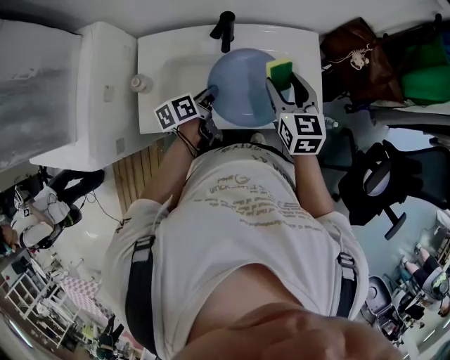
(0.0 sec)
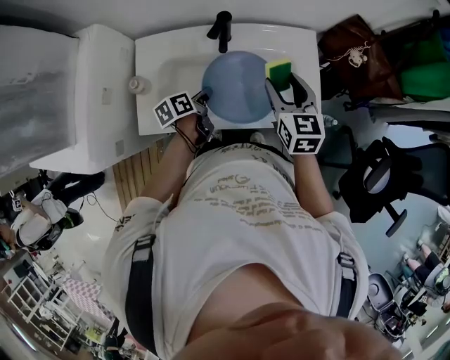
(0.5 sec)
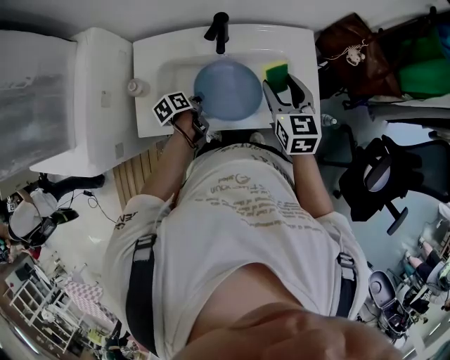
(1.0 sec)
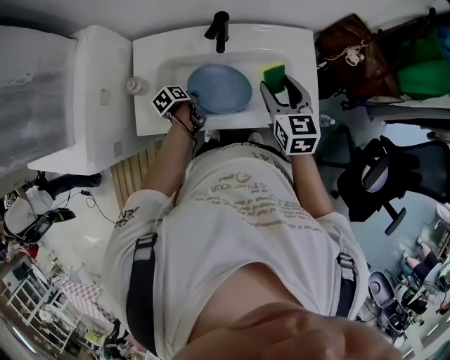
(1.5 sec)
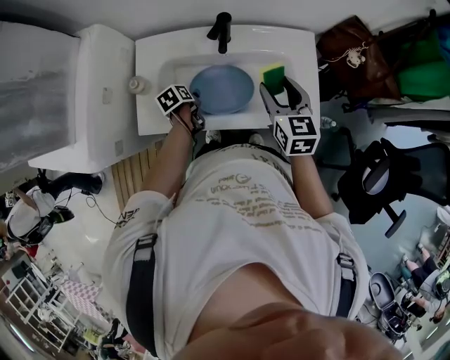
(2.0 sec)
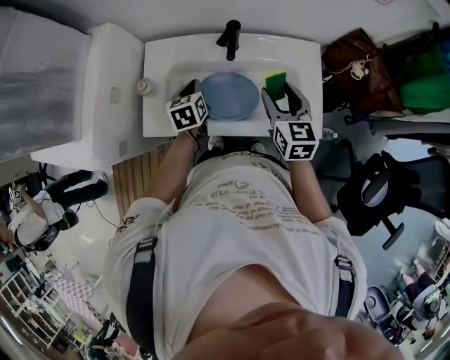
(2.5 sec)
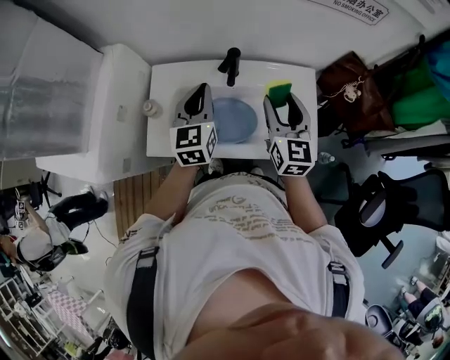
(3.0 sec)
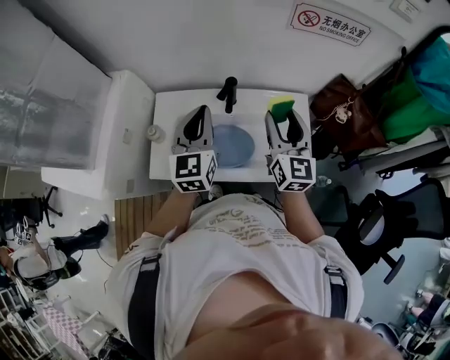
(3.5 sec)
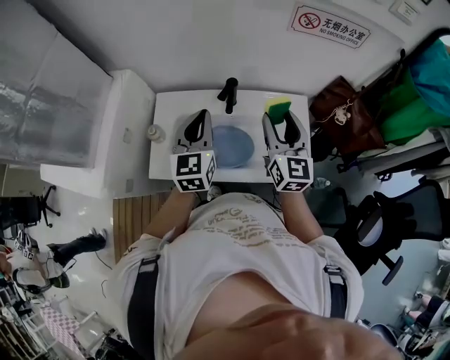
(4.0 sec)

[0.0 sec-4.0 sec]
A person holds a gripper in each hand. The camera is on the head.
0.0 sec to 2.0 sec: The left gripper travels downward and to the left by about 15 cm, swivels approximately 30 degrees, and opens.
2.0 sec to 4.0 sec: The left gripper moves upward, roughly 35 cm, tilts its fingers approximately 50 degrees upward, and closes, while the right gripper shifts approximately 10 cm upward, and rotates approximately 30 degrees.

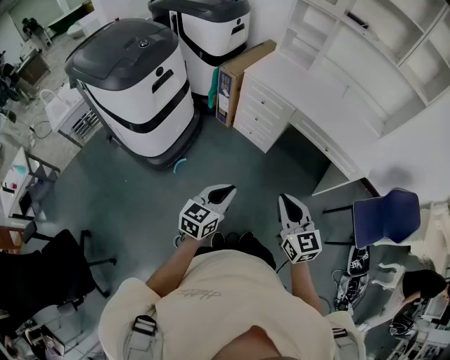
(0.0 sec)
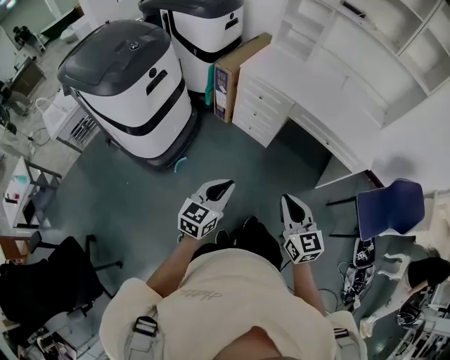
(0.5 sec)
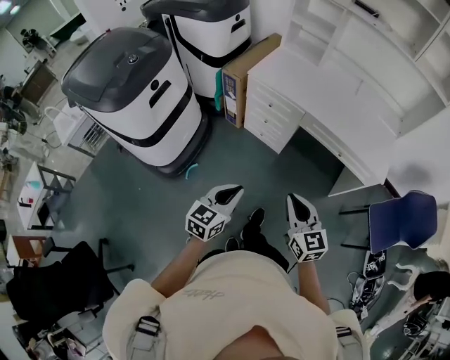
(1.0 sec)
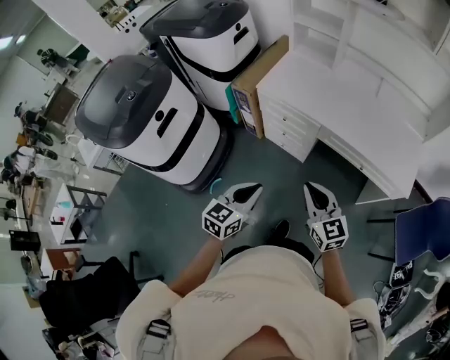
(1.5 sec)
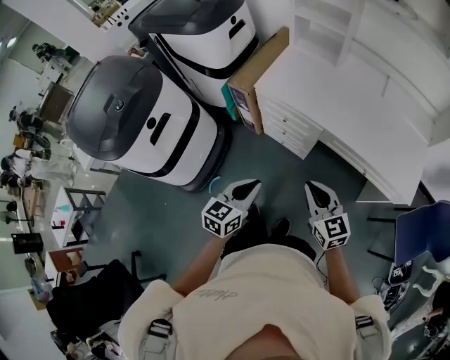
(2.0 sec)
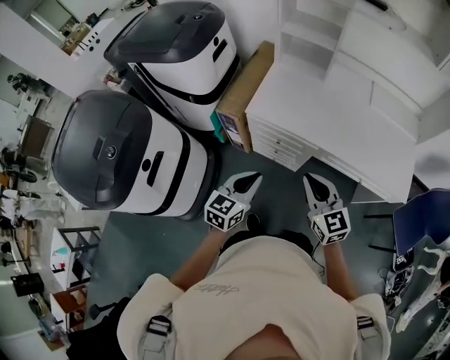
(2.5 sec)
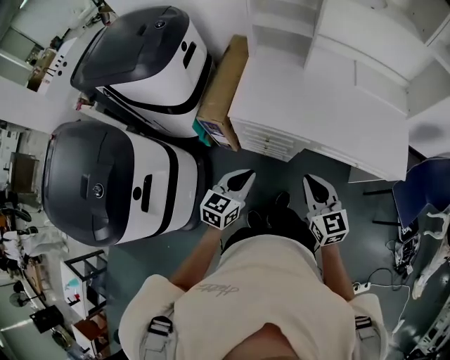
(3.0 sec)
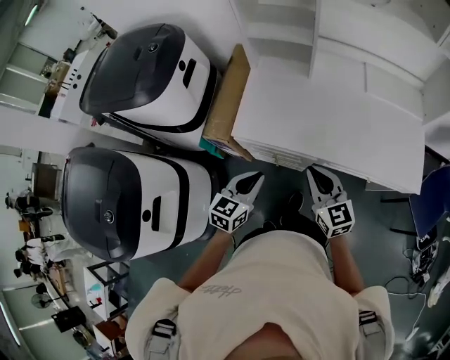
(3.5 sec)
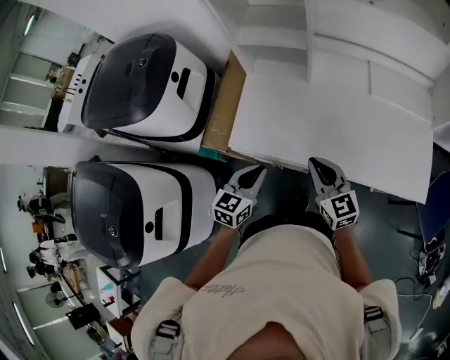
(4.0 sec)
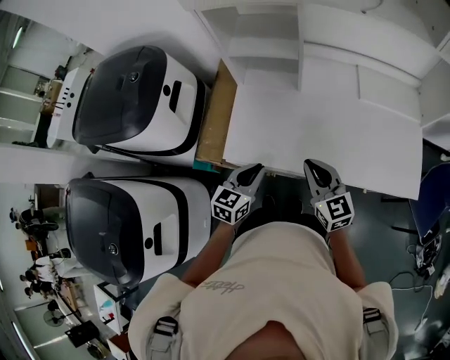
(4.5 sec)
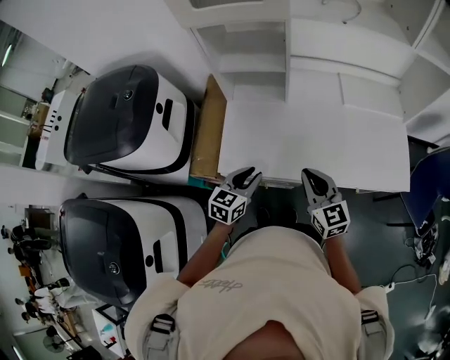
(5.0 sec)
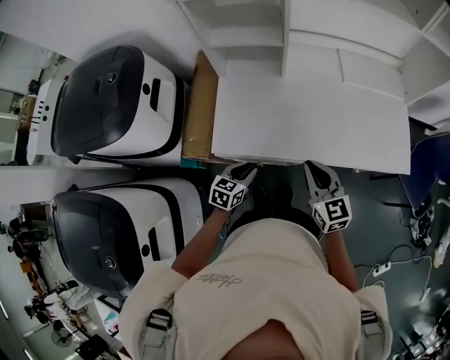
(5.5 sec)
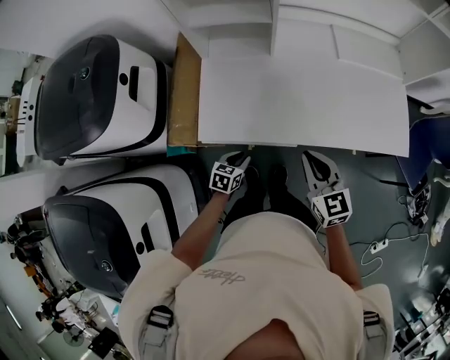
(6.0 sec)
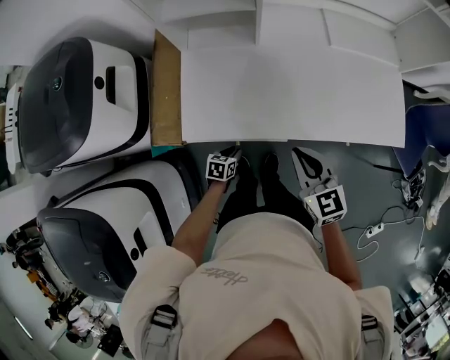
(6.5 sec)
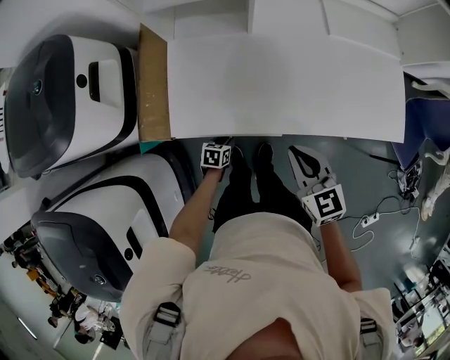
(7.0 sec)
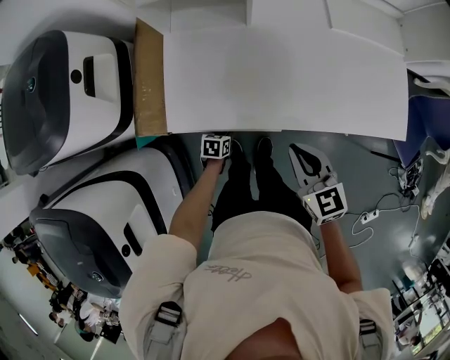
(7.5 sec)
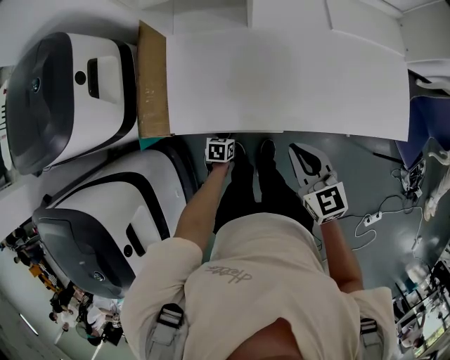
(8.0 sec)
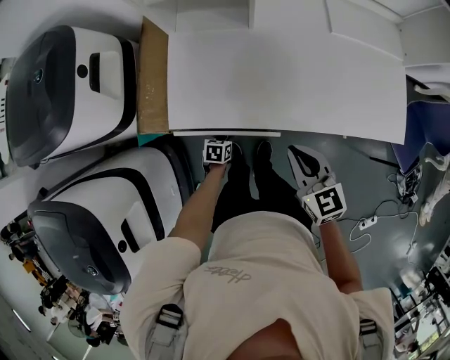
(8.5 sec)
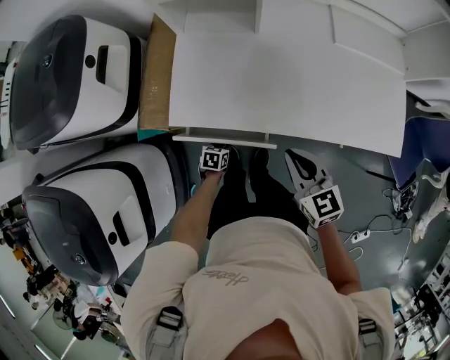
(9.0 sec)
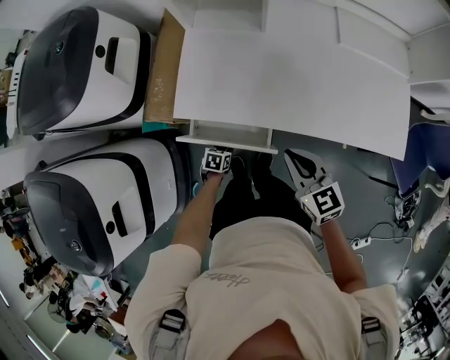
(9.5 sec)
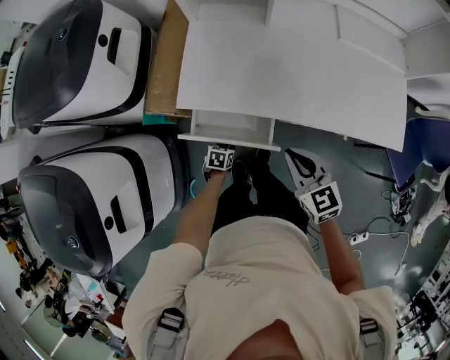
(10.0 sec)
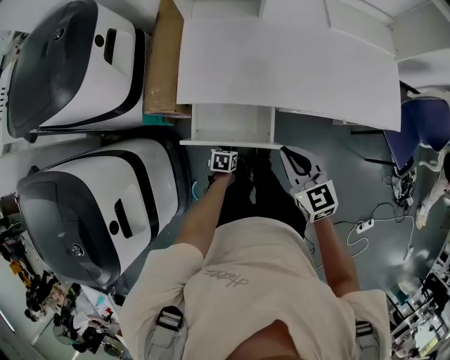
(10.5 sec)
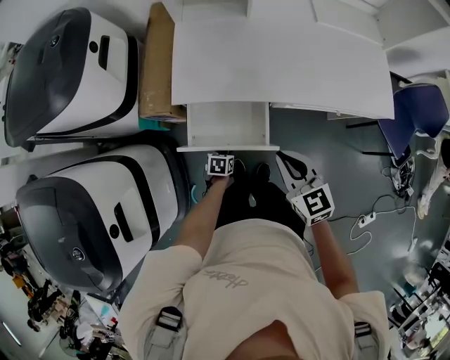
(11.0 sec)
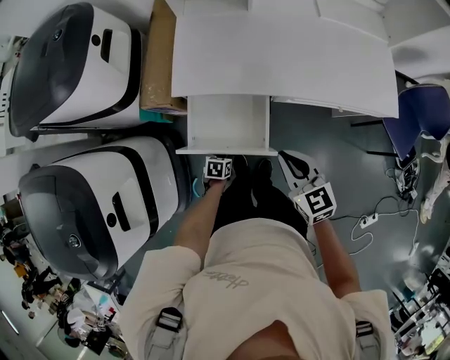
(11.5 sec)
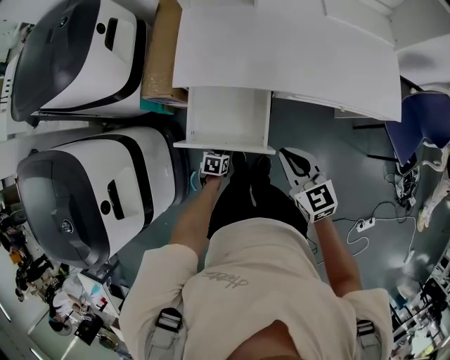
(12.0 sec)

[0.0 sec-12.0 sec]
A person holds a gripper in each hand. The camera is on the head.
0.0 sec to 2.0 sec: The two grippers go roughly 30 cm forward.
2.0 sec to 4.0 sec: The grippers both shift forward by roughly 30 cm.
4.0 sec to 6.0 sec: The left gripper goes roughly 20 cm downward, and turns by roughly 30 degrees.
6.0 sec to 8.0 sec: The right gripper is displaced downward by some 5 cm; the left gripper heads downward, covering approximately 15 cm.
8.0 sec to 10.0 sec: The grippers both shift backward by about 10 cm.
10.0 sec to 12.0 sec: Both grippers move backward, some 10 cm.

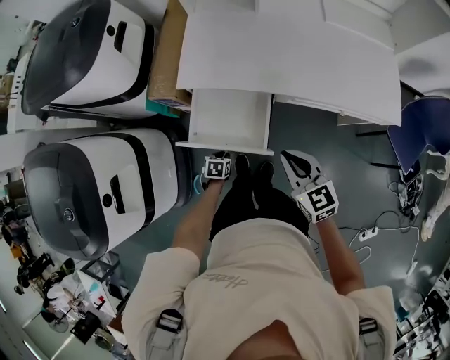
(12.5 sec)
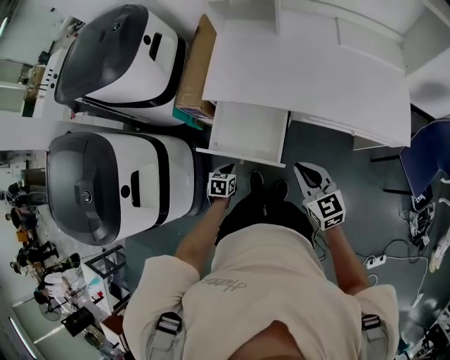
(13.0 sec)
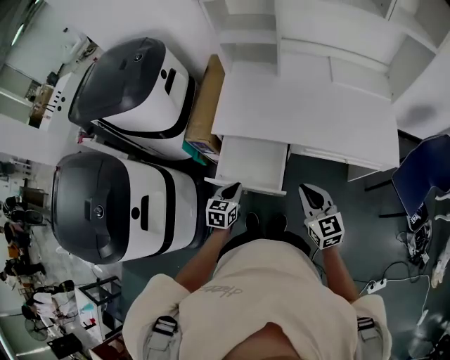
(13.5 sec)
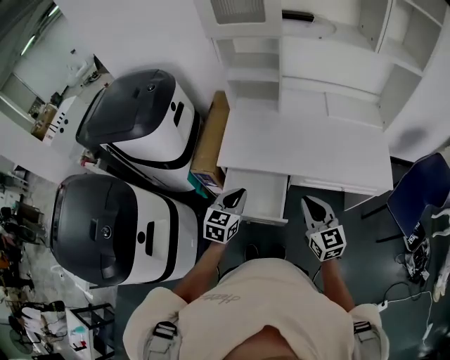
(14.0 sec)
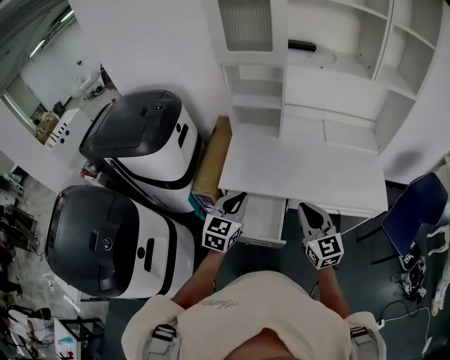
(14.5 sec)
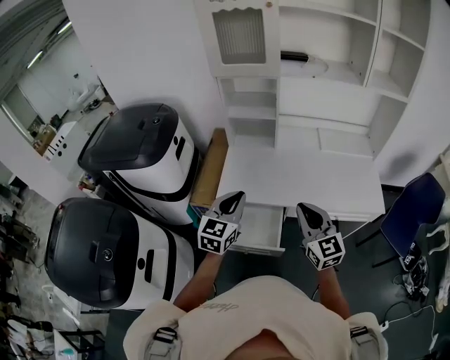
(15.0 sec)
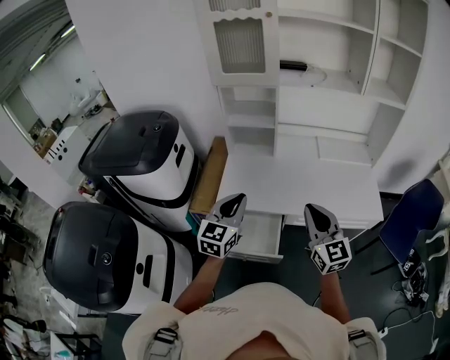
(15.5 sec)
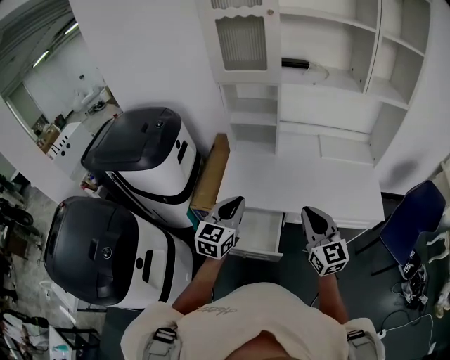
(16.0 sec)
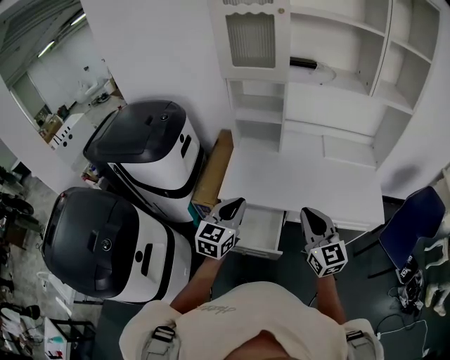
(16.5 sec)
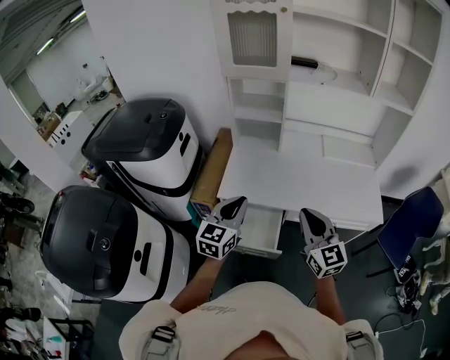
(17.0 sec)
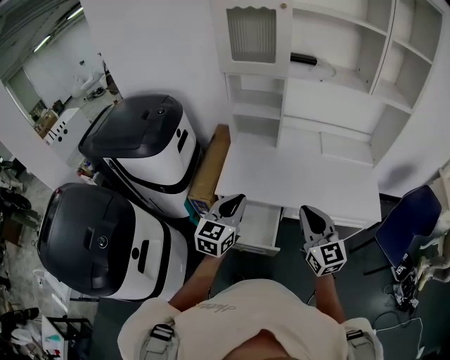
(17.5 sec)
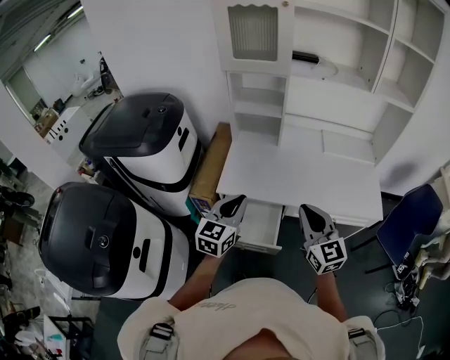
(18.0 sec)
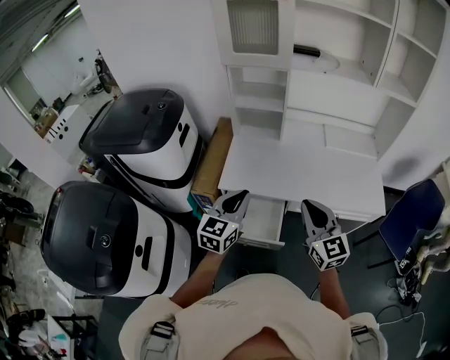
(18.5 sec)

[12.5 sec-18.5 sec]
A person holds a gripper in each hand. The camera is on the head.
12.5 sec to 14.5 sec: The right gripper moves upward, roughly 20 cm, and rotates roughly 20 degrees. The left gripper moves upward, about 50 cm, and tips its fingers upward by approximately 50 degrees.
14.5 sec to 16.5 sec: The right gripper moves upward, roughly 5 cm.
16.5 sec to 18.5 sec: The grippers stay close to where they were, moving slightly.

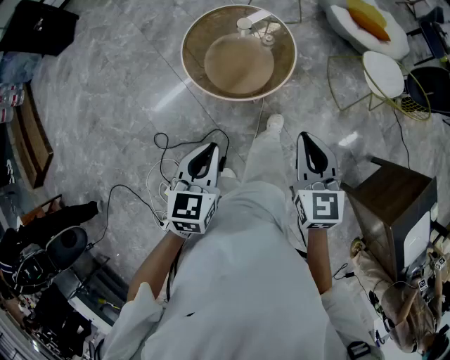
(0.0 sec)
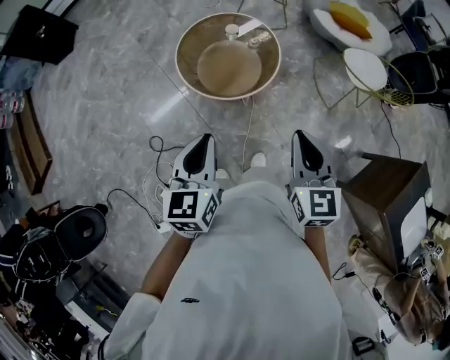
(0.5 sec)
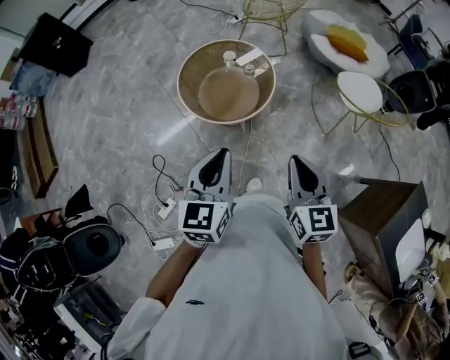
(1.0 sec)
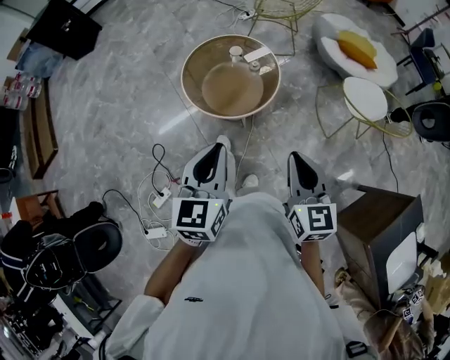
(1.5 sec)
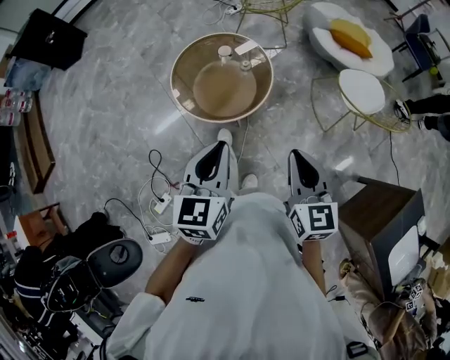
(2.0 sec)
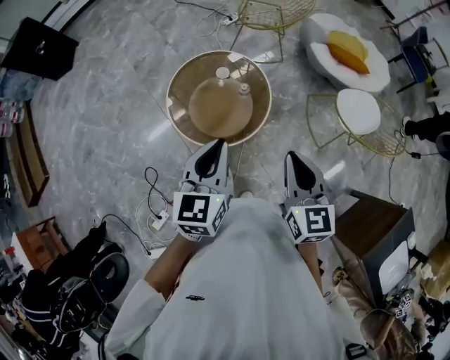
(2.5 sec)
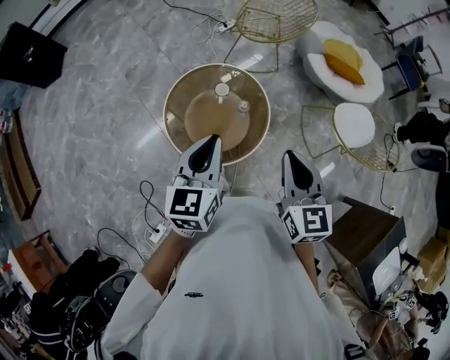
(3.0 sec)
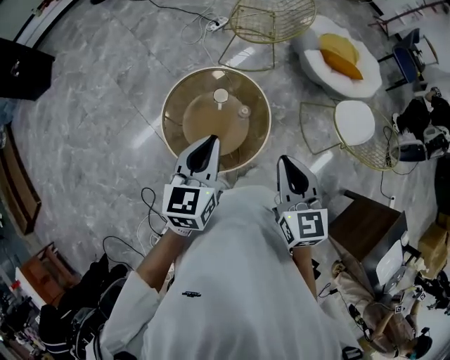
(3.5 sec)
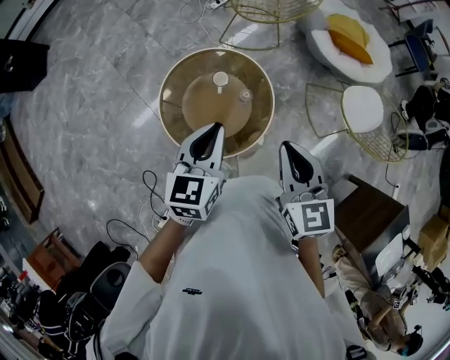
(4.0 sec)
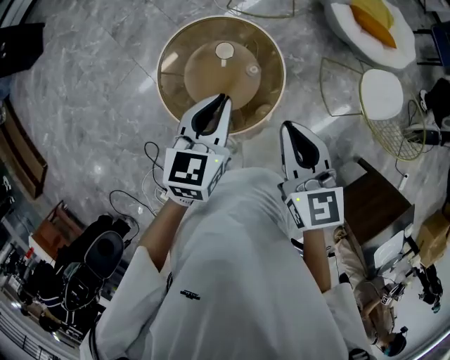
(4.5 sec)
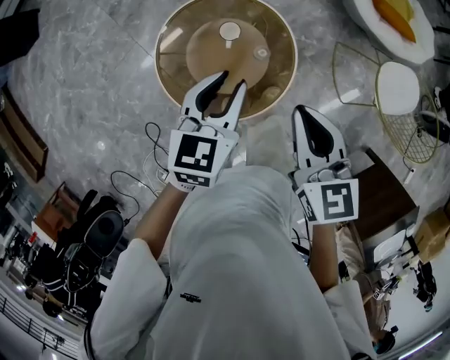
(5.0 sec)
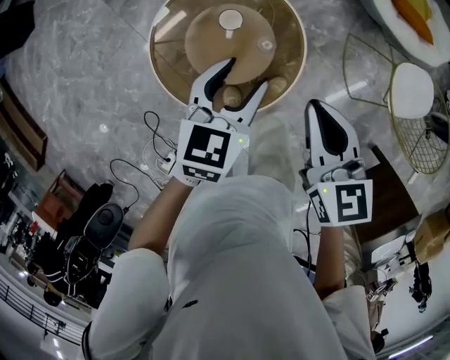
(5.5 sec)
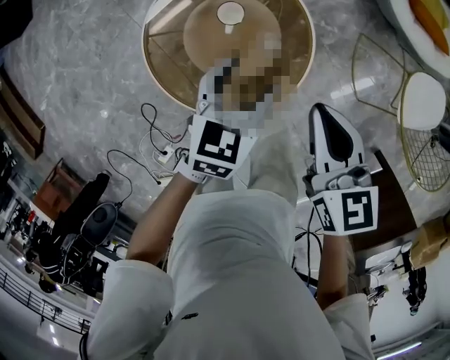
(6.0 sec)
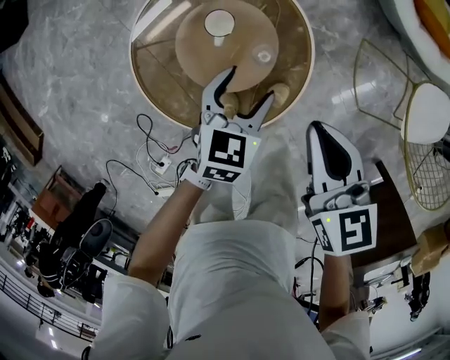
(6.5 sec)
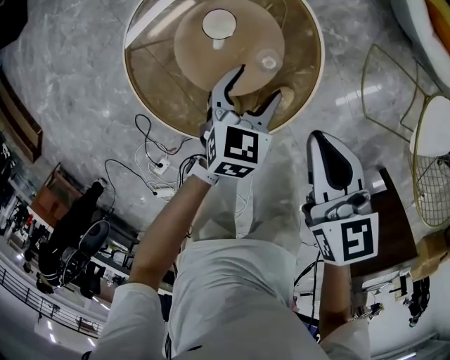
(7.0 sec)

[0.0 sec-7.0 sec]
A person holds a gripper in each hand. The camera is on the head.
0.0 sec to 2.0 sec: The left gripper shifts some 15 cm to the right and upward, while the right gripper moves to the right, about 10 cm.
2.0 sec to 3.5 sec: The left gripper moves forward, approximately 30 cm. The right gripper is displaced forward and to the left by approximately 30 cm.
3.5 sec to 5.0 sec: The left gripper is displaced downward, forward and to the right by about 15 cm; the right gripper is displaced forward and downward by roughly 15 cm.
5.0 sec to 7.0 sec: Both grippers move downward, some 25 cm. The left gripper opens up.